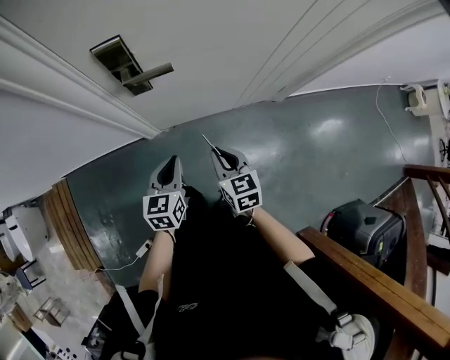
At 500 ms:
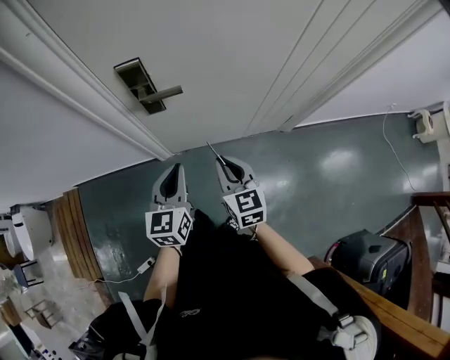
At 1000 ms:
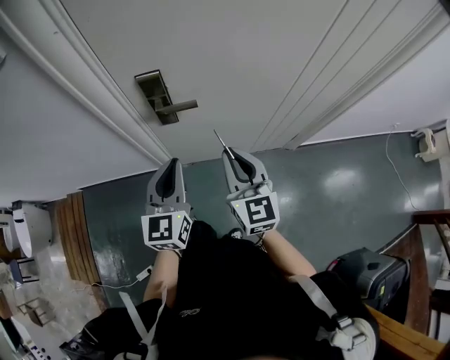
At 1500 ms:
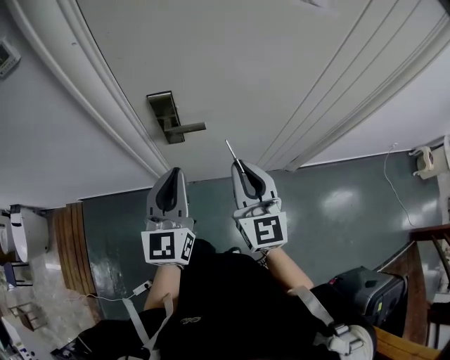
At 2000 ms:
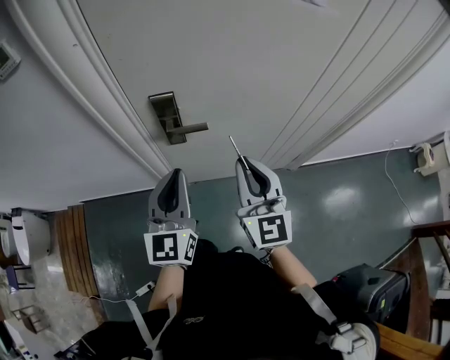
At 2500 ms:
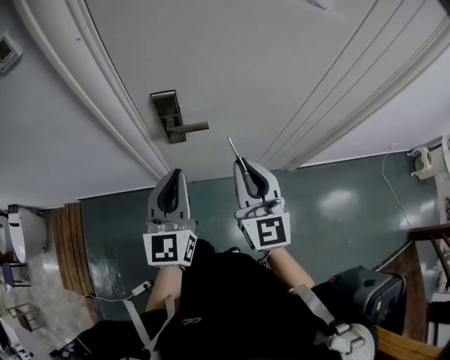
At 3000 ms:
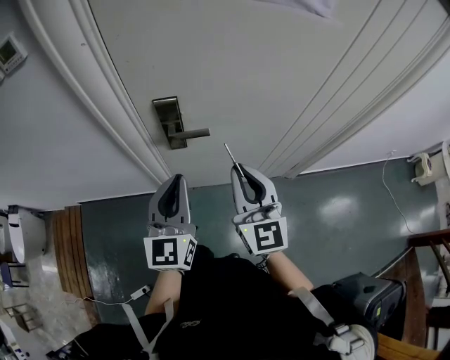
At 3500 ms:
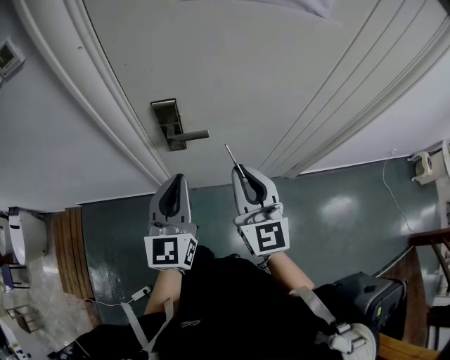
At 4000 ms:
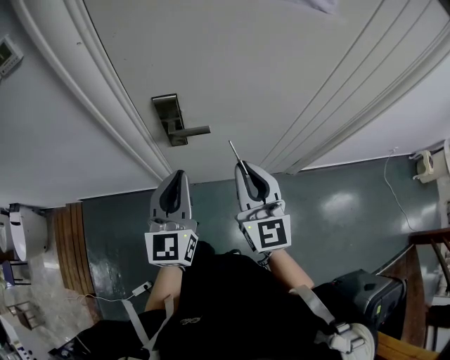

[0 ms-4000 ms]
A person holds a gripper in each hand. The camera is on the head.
0 ms to 2000 ms: Both grippers move upward, about 25 cm. The right gripper tips its fingers upward by about 30 degrees; the left gripper angles its fingers upward, by approximately 30 degrees.
2000 ms to 4000 ms: The two grippers keep their place.

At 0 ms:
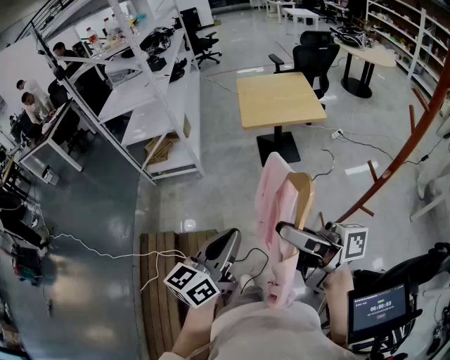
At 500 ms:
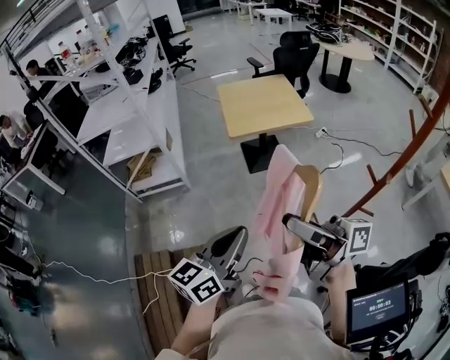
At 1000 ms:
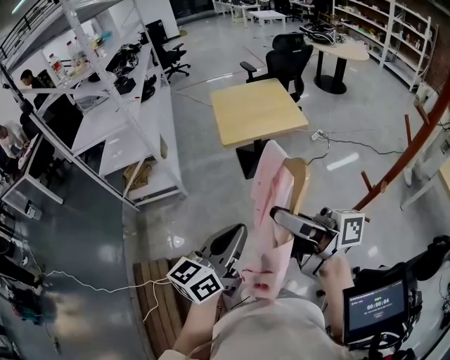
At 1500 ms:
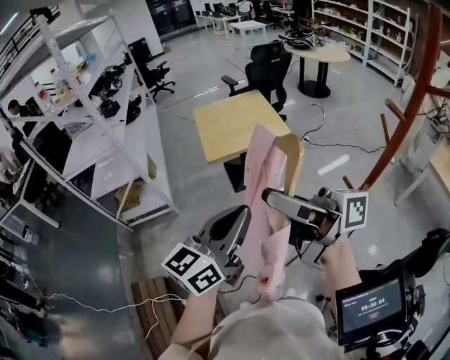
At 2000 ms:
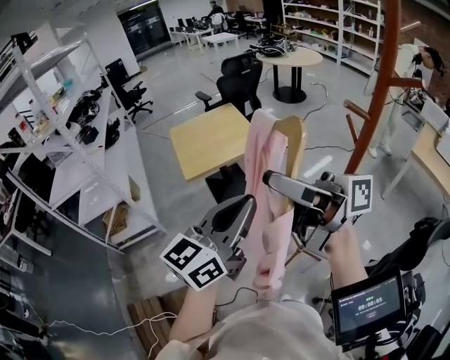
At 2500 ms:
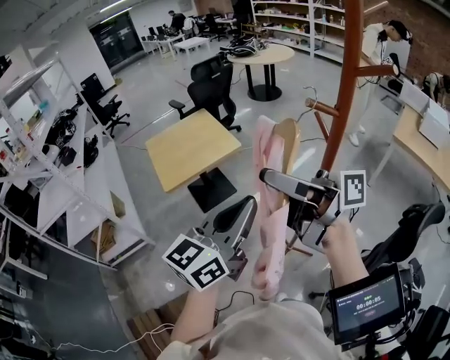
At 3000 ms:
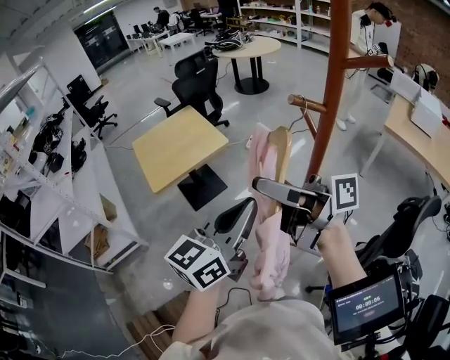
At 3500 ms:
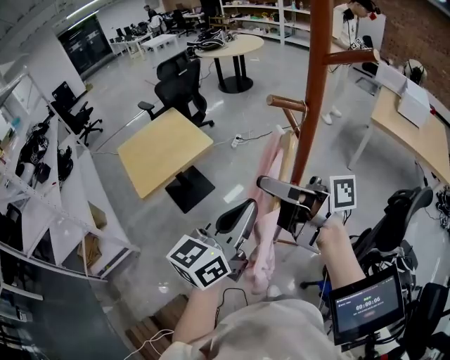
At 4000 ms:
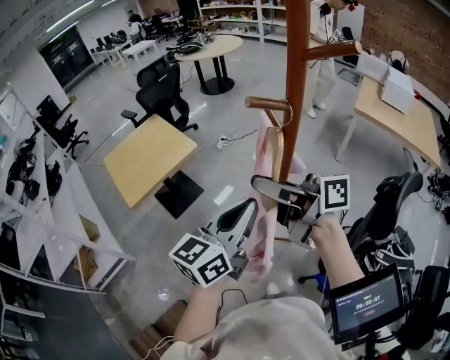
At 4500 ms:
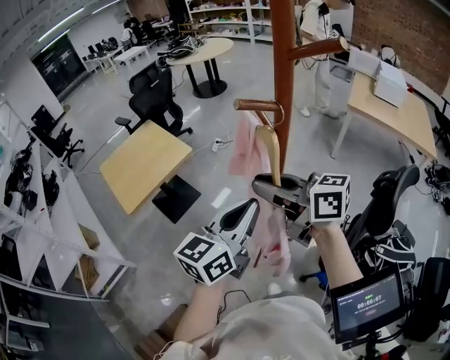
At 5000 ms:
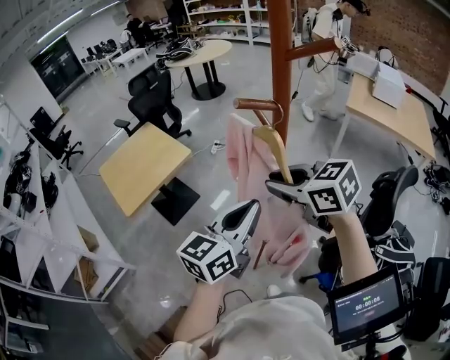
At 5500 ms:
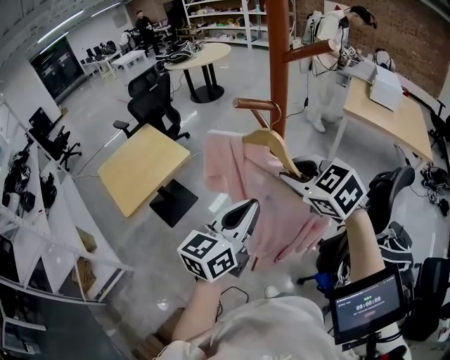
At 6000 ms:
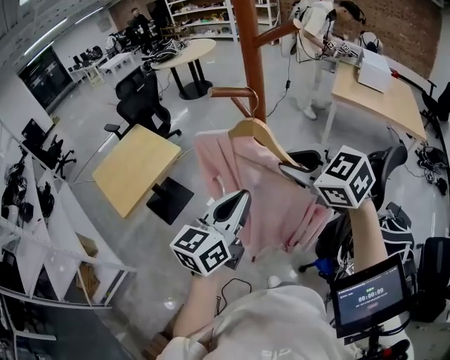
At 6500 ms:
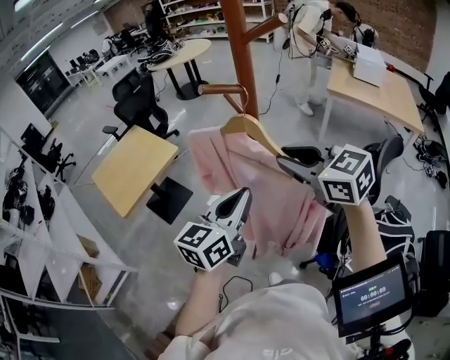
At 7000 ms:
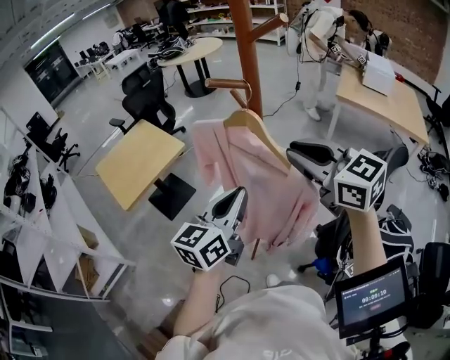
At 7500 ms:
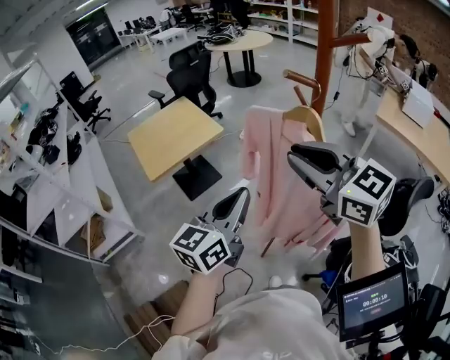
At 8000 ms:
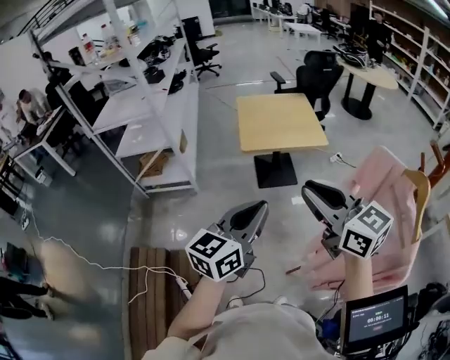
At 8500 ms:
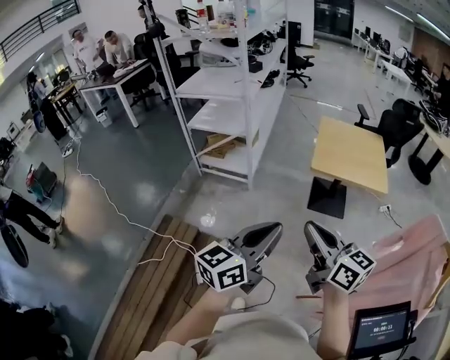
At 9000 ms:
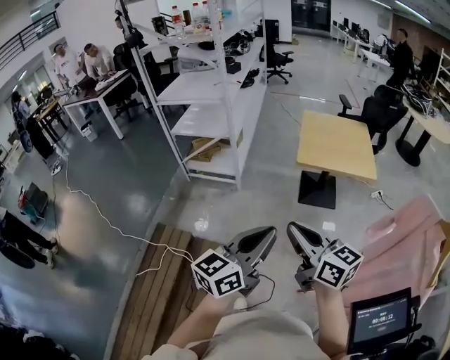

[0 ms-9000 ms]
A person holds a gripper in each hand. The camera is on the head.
0 ms to 2000 ms: The right gripper heads upward, to the right and forward, covering roughly 25 cm, and turns by about 20 degrees; the left gripper is displaced to the right, forward and upward by some 30 cm, and swivels some 30 degrees.
2000 ms to 4500 ms: The right gripper moves approximately 25 cm, and rotates approximately 50 degrees. The left gripper ends up approximately 20 cm from where it was, and turns by roughly 20 degrees.
4500 ms to 7000 ms: The right gripper goes some 10 cm to the right, and swivels roughly 40 degrees.
7000 ms to 9000 ms: Both grippers are carried roughly 50 cm. The right gripper rotates approximately 60 degrees. Meanwhile the left gripper swivels about 60 degrees.

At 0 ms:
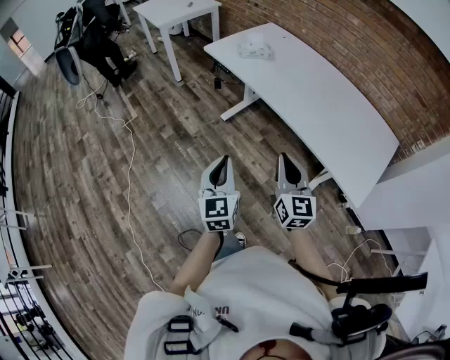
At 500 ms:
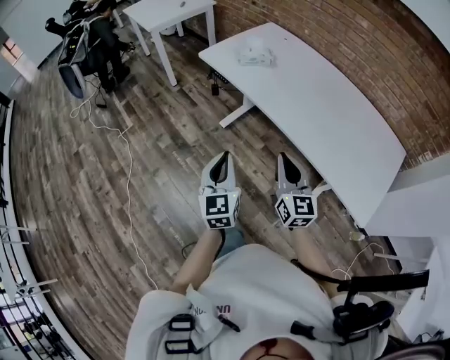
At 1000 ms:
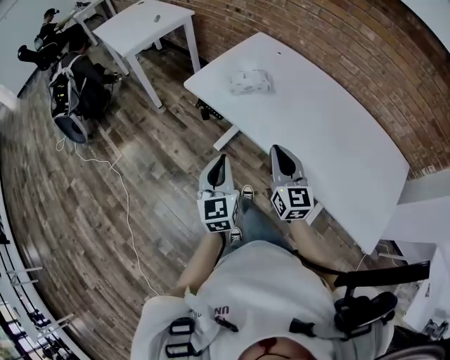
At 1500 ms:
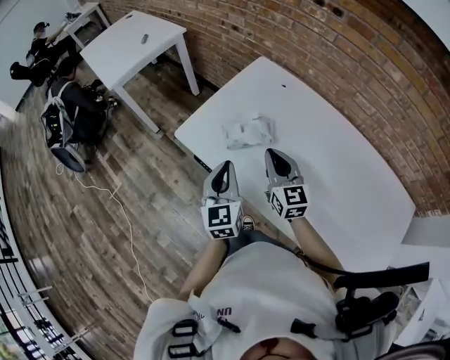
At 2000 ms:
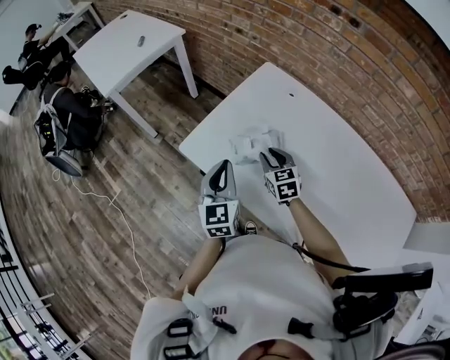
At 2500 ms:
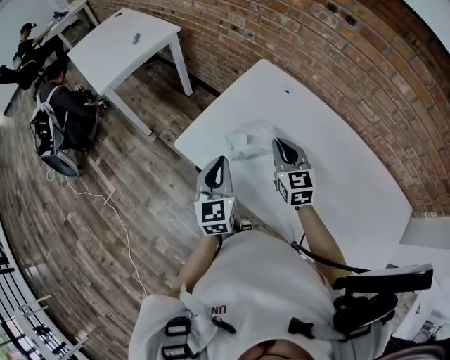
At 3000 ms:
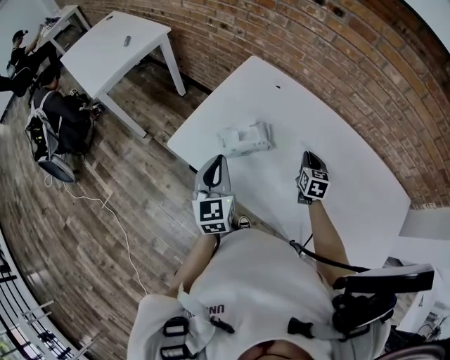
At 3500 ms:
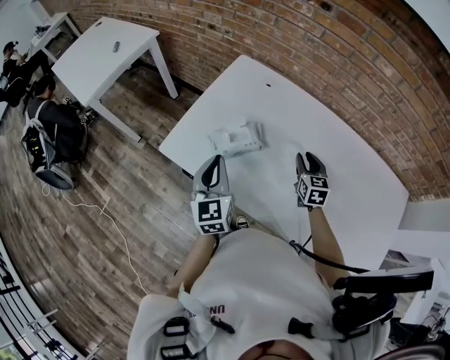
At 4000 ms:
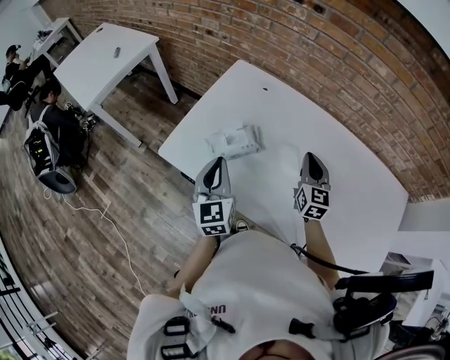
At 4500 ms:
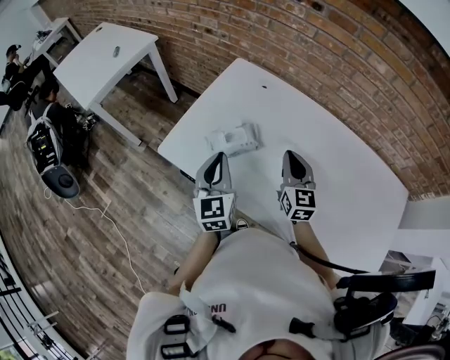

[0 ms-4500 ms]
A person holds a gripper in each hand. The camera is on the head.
0 ms to 2000 ms: The two grippers travel together, forward, about 60 cm. The right gripper points its fingers some 30 degrees further downward, and opens up.
2000 ms to 4500 ms: The left gripper goes approximately 5 cm to the right. The right gripper heads to the right, upward and backward, covering approximately 20 cm, turns by about 30 degrees, and closes up.

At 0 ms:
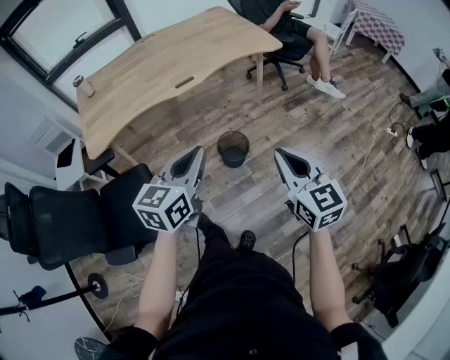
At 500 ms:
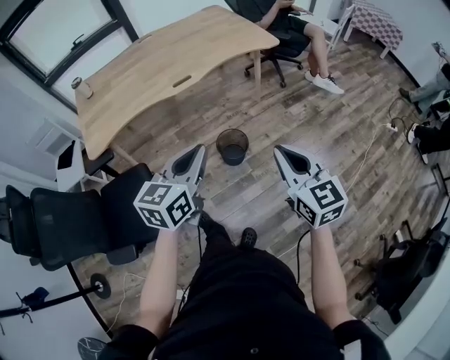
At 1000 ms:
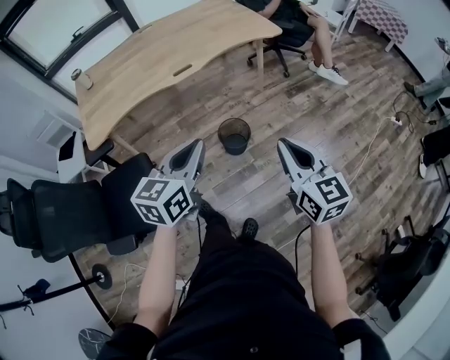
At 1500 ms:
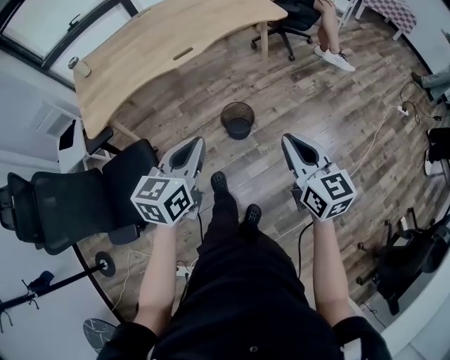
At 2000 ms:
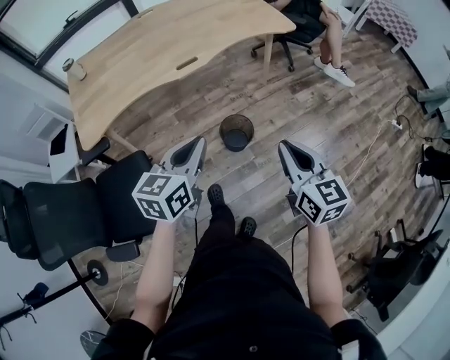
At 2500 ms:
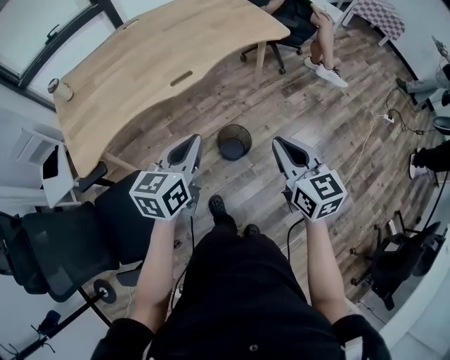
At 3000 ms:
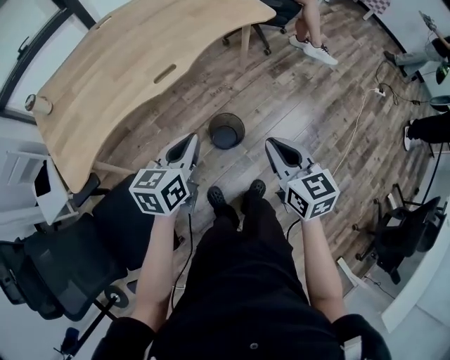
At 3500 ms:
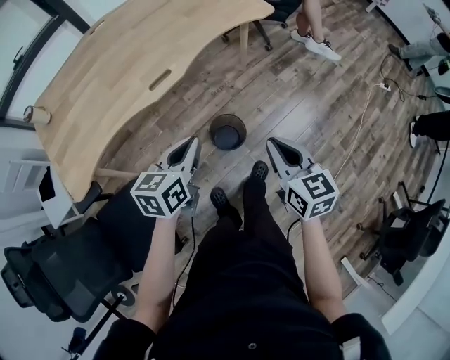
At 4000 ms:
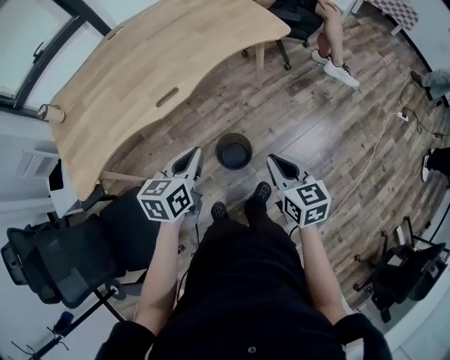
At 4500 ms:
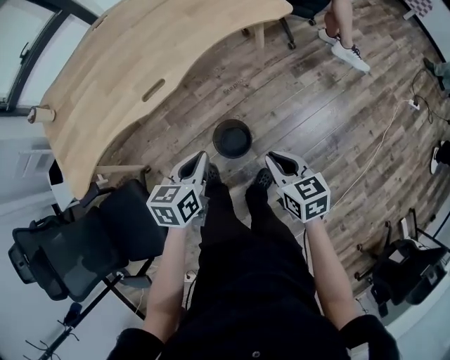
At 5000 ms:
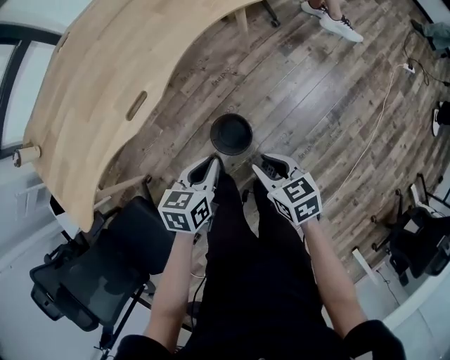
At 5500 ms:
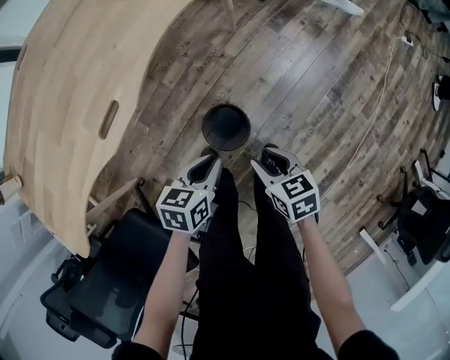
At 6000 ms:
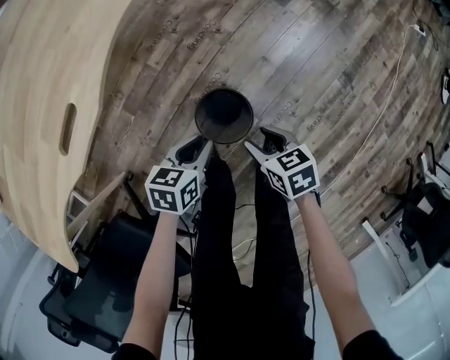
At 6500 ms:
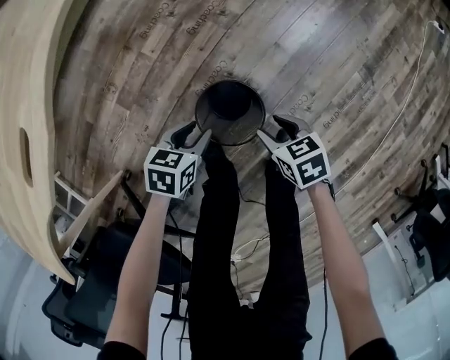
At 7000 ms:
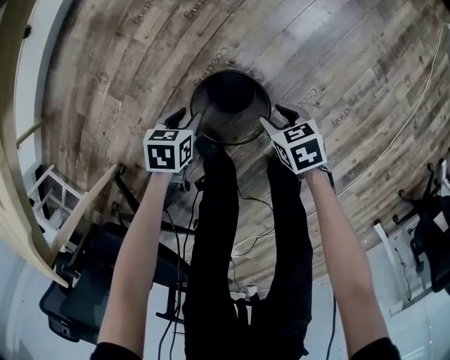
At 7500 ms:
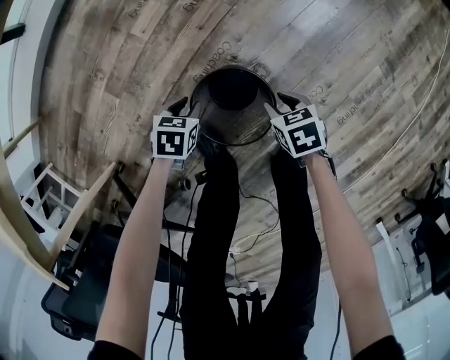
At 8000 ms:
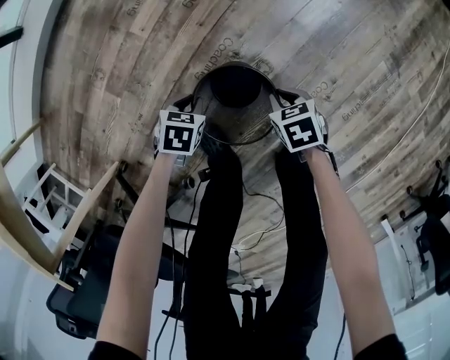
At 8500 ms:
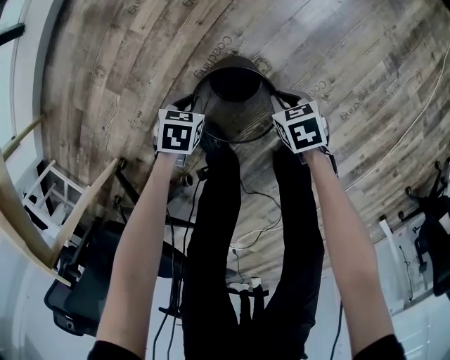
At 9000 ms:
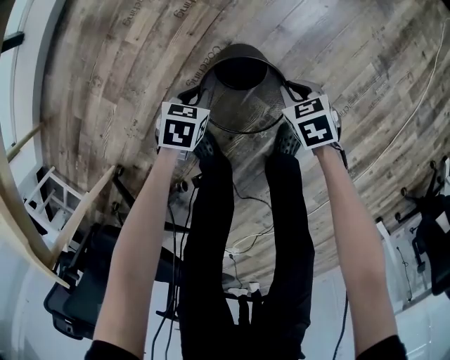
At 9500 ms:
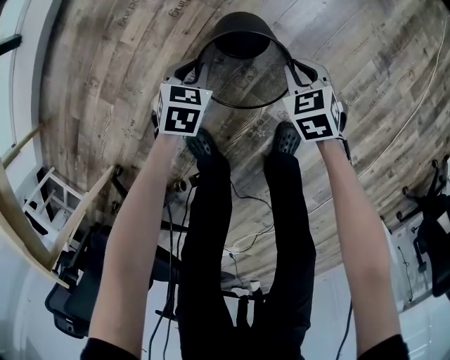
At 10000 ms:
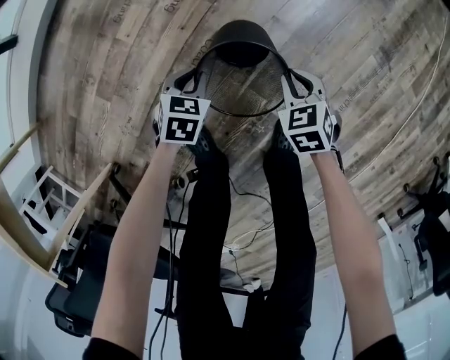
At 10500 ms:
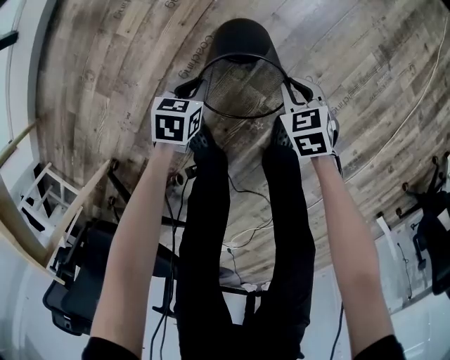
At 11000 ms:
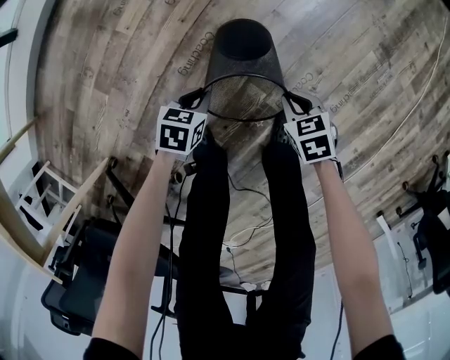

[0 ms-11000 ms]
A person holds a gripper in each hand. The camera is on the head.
0 ms to 2000 ms: The right gripper goes roughly 5 cm forward. Meanwhile the left gripper goes about 10 cm forward and downward.
2000 ms to 3500 ms: Both grippers move forward and downward, roughly 15 cm.
3500 ms to 5500 ms: The two grippers go roughly 25 cm downward. The right gripper turns by roughly 30 degrees. The left gripper turns by about 30 degrees.
5500 ms to 7500 ms: The grippers both shift downward by approximately 40 cm. The left gripper swivels roughly 30 degrees.
7500 ms to 9000 ms: The left gripper ends up about 10 cm from where it was; the right gripper moves some 10 cm.
9000 ms to 11000 ms: Both grippers move backward, roughly 5 cm.
